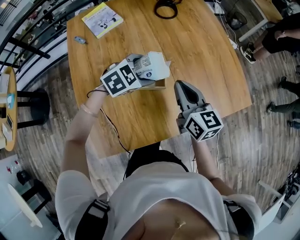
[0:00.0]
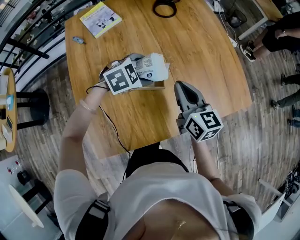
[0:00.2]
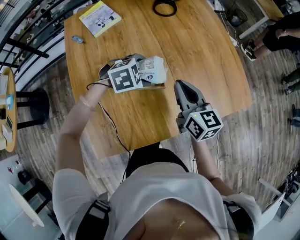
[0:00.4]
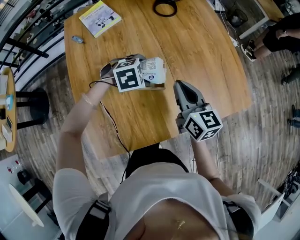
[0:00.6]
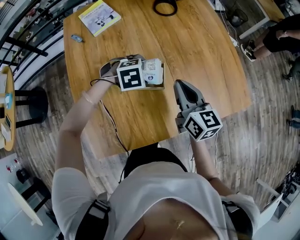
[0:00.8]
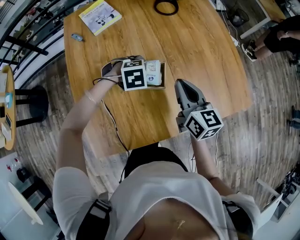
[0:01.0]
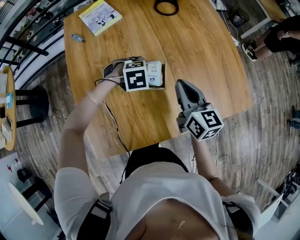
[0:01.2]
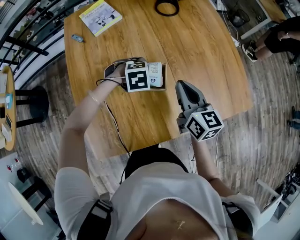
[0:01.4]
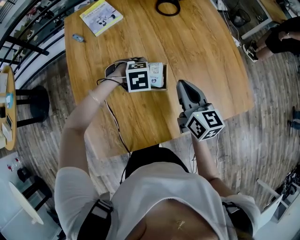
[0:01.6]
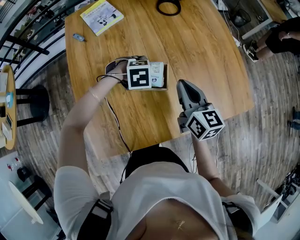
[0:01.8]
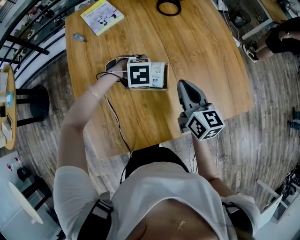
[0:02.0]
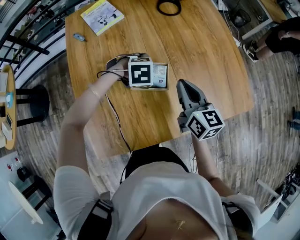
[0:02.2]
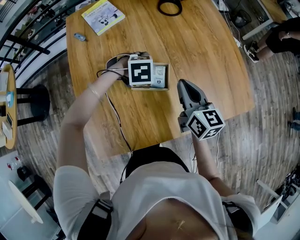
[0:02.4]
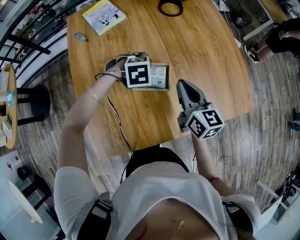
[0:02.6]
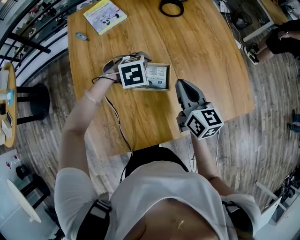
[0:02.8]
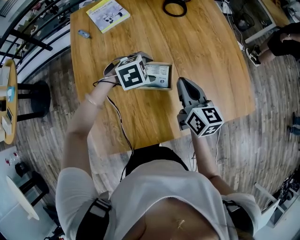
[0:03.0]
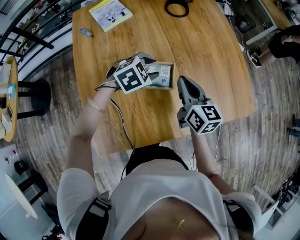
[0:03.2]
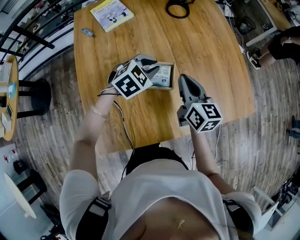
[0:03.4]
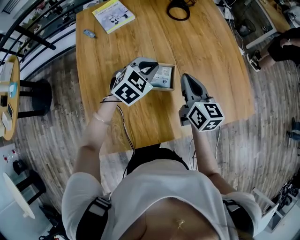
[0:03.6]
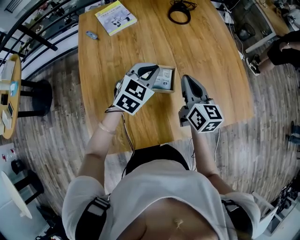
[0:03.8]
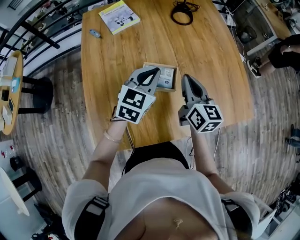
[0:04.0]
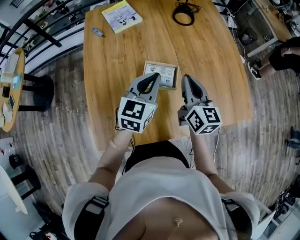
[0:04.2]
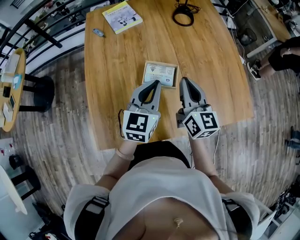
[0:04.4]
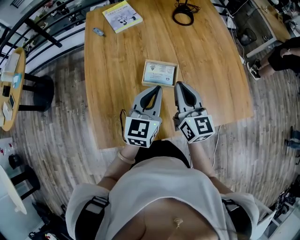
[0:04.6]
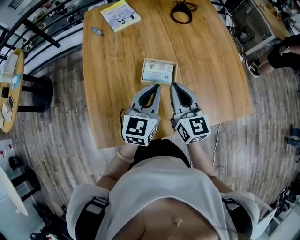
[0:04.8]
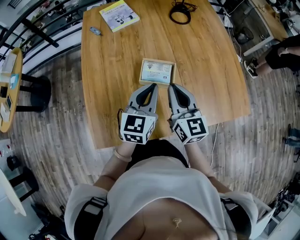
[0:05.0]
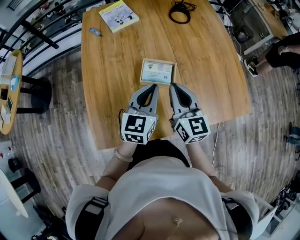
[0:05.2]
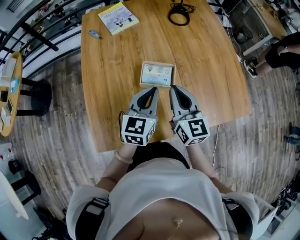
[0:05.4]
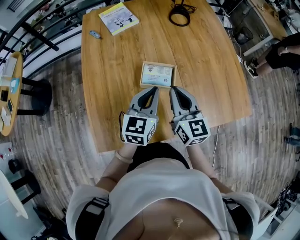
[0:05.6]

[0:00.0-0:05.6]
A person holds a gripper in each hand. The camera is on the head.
0:00.0 to 0:01.4: The left gripper heads downward, covering some 10 cm, and changes its angle by approximately 30 degrees.
0:01.4 to 0:02.8: The grippers stay close to where they were, moving slightly.
0:02.8 to 0:04.2: The left gripper moves upward, some 15 cm, angles its fingers upward, by approximately 50 degrees, and closes up.
0:04.2 to 0:05.6: The left gripper ends up approximately 5 cm from where it was; the right gripper goes roughly 5 cm backward.

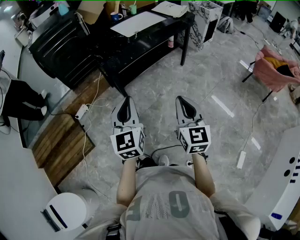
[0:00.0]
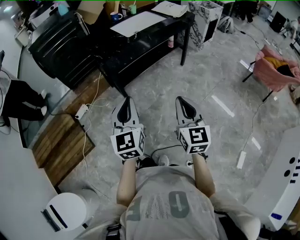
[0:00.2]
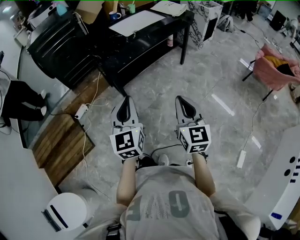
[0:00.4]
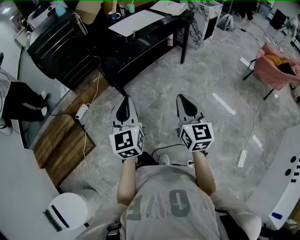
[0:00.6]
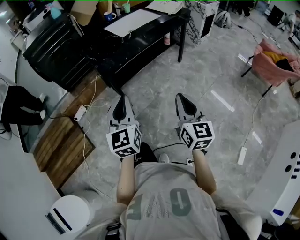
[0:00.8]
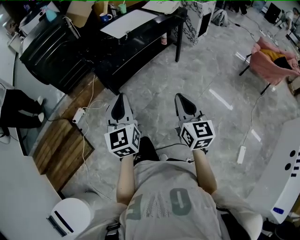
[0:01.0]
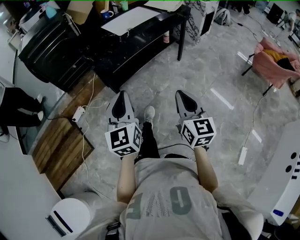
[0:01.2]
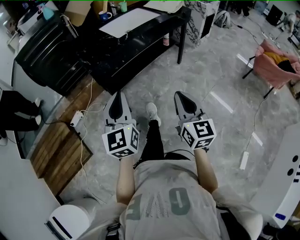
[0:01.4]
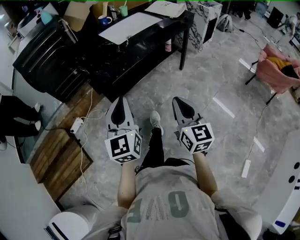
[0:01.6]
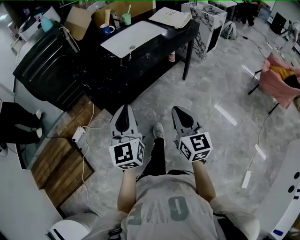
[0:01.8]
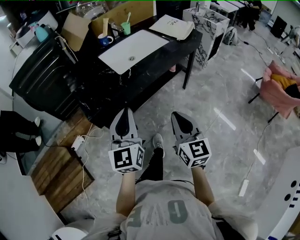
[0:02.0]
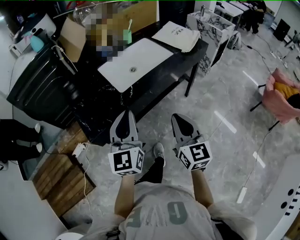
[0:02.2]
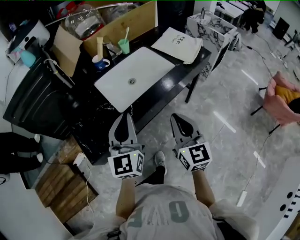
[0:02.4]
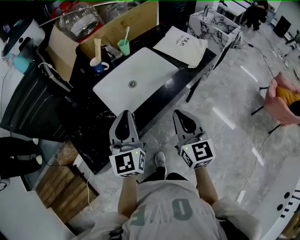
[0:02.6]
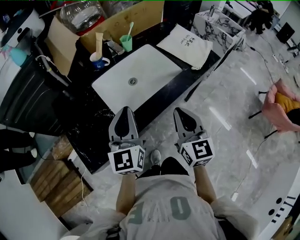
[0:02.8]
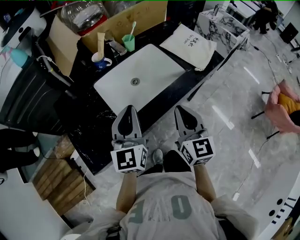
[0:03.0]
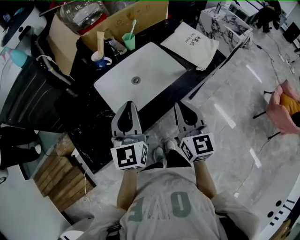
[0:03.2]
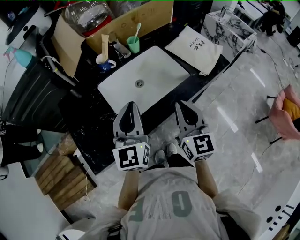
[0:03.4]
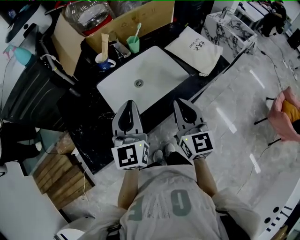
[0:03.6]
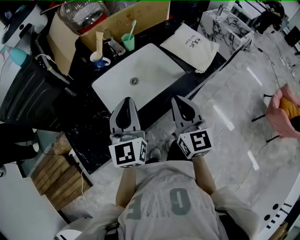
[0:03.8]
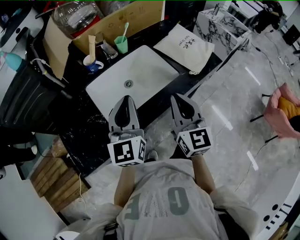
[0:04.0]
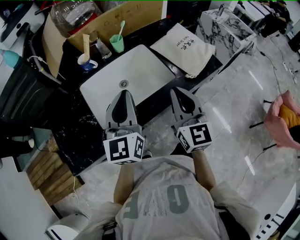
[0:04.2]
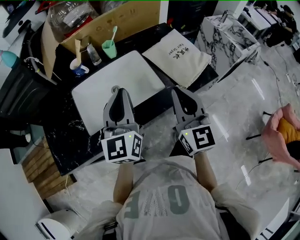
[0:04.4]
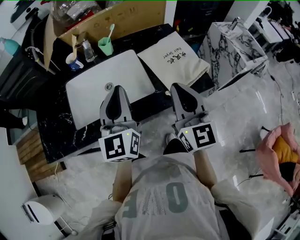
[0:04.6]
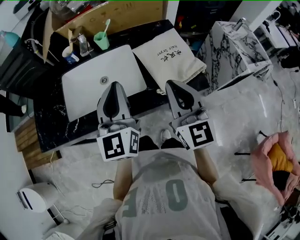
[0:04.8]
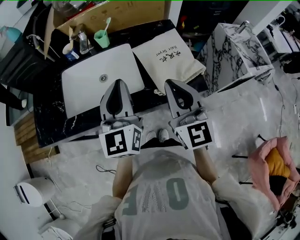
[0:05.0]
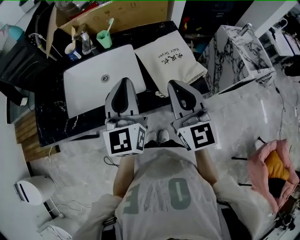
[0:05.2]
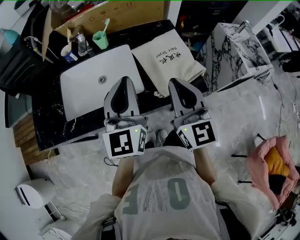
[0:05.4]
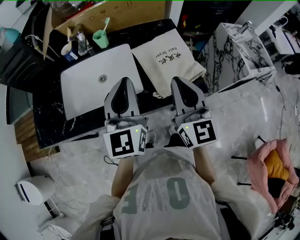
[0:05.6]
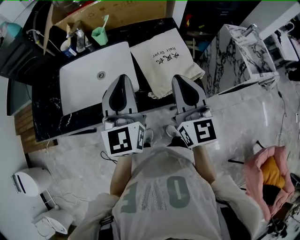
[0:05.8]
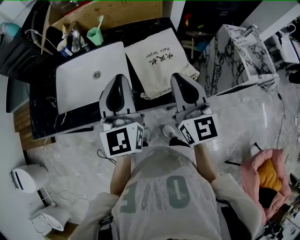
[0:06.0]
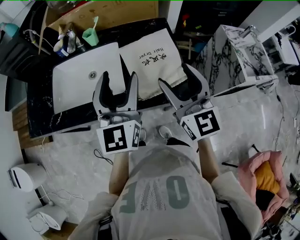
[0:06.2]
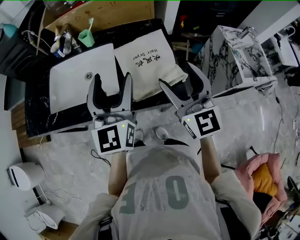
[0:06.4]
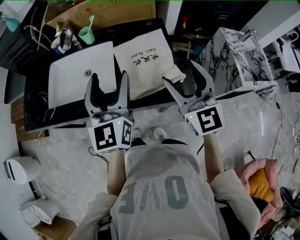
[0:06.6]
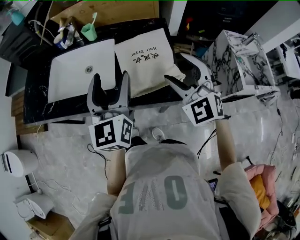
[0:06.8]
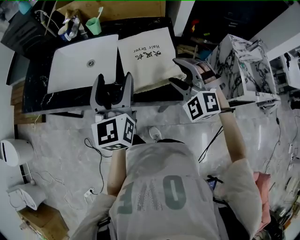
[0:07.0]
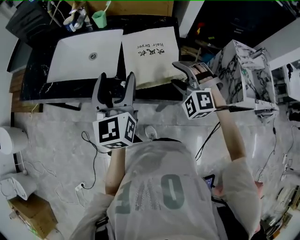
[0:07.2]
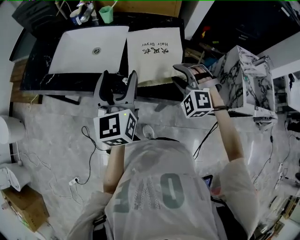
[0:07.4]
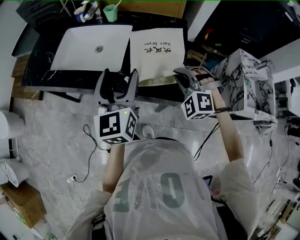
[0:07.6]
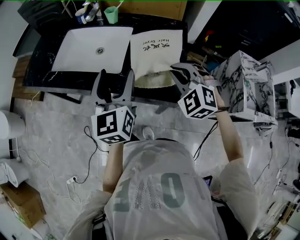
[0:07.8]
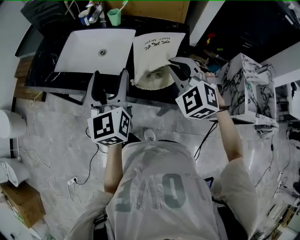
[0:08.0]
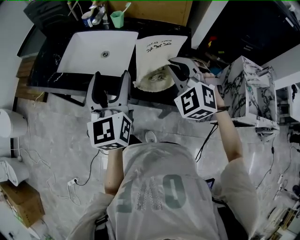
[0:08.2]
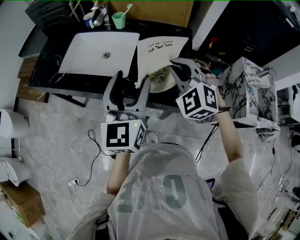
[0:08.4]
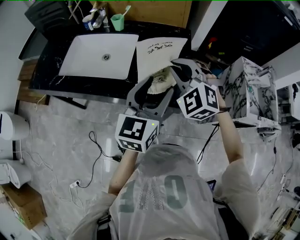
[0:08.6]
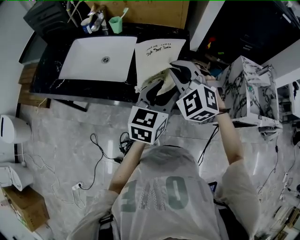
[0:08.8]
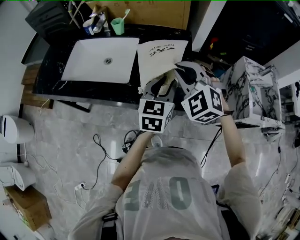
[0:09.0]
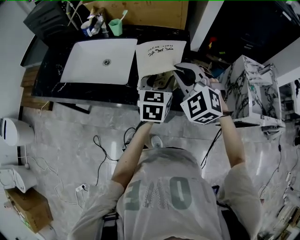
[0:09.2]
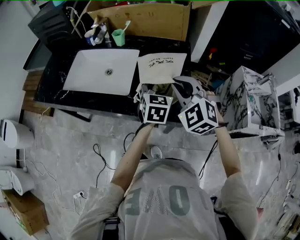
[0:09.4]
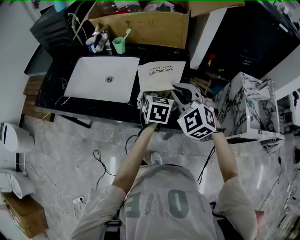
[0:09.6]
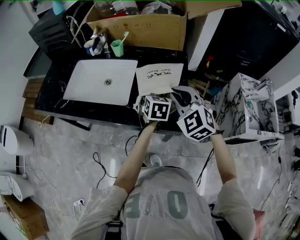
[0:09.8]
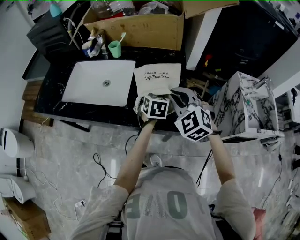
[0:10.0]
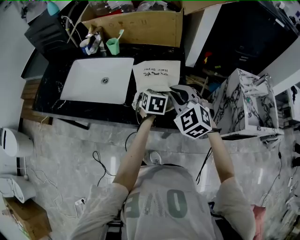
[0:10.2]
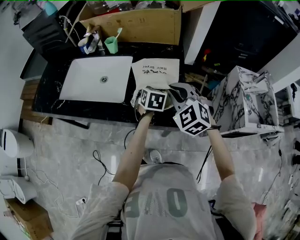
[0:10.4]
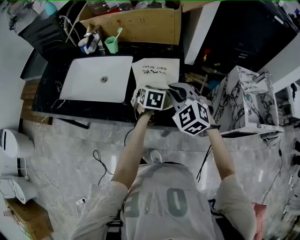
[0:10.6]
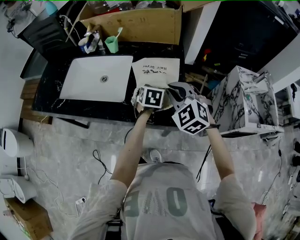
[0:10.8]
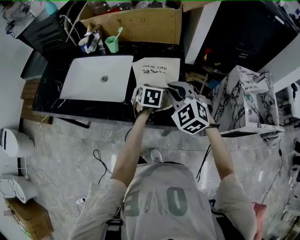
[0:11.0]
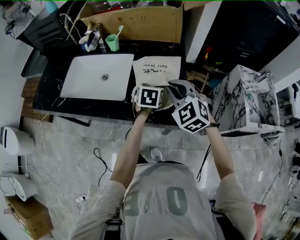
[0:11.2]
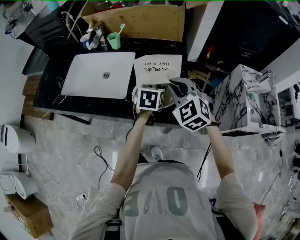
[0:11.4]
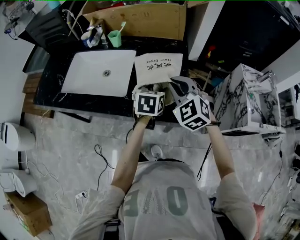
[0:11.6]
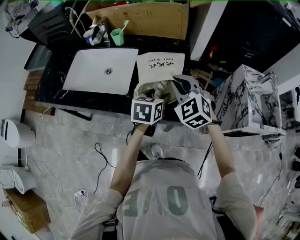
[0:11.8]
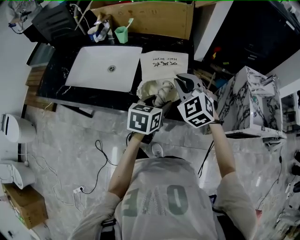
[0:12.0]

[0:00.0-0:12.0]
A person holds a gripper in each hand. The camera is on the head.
0:00.0 to 0:01.6: The right gripper travels forward and downward by roughly 15 cm. Meanwhile the left gripper goes approximately 15 cm forward.
0:01.6 to 0:03.0: Both grippers are carried forward, some 50 cm.
0:03.0 to 0:04.4: The two grippers go roughly 20 cm to the right and forward.
0:04.4 to 0:06.0: The grippers both shift to the right by approximately 20 cm. The right gripper turns by approximately 20 degrees, while the left gripper swivels some 20 degrees.
0:06.0 to 0:07.6: The right gripper is displaced downward and to the right by roughly 15 cm, rolls counterclockwise, seen from behind, by some 70 degrees, and opens and closes again, while the left gripper travels downward and backward by some 10 cm, and opens up.
0:07.6 to 0:09.0: The right gripper moves upward, about 10 cm, and rotates approximately 20 degrees; the left gripper shifts approximately 15 cm to the right and downward, changes its angle by about 30 degrees, and closes.
0:09.0 to 0:10.4: The left gripper goes roughly 15 cm downward and forward, changes its angle by some 30 degrees, and opens up.
0:10.4 to 0:12.0: The left gripper moves backward and upward, roughly 15 cm, and swivels some 20 degrees.

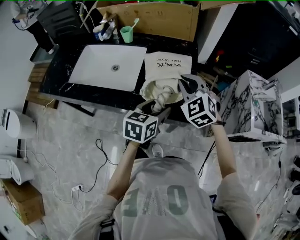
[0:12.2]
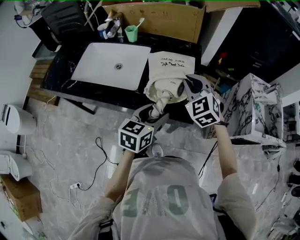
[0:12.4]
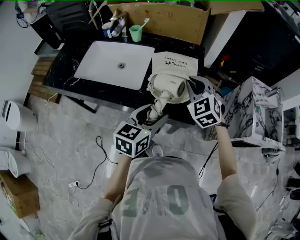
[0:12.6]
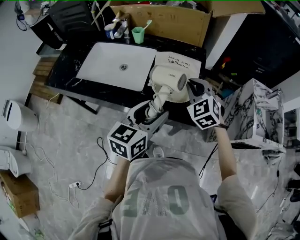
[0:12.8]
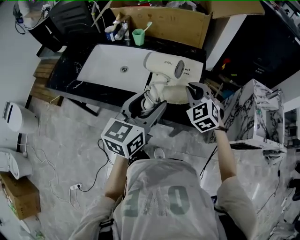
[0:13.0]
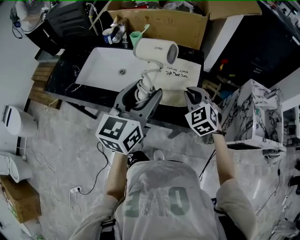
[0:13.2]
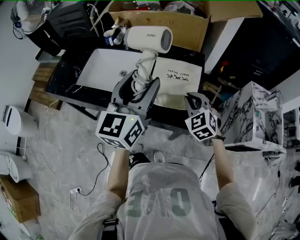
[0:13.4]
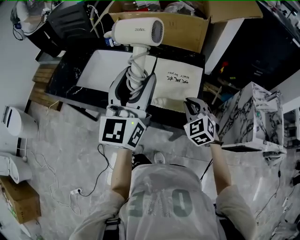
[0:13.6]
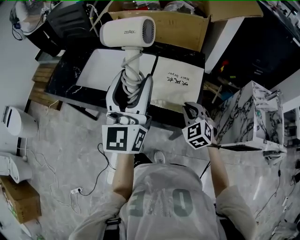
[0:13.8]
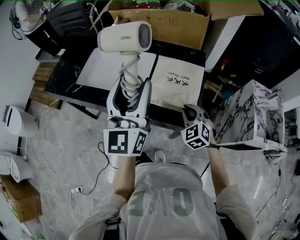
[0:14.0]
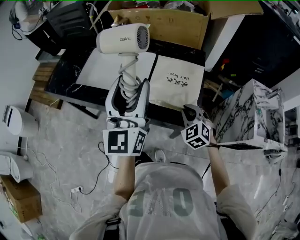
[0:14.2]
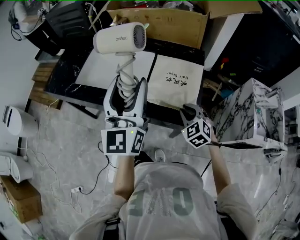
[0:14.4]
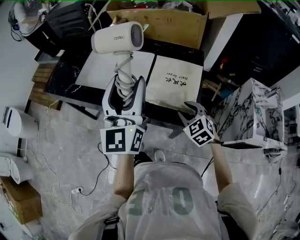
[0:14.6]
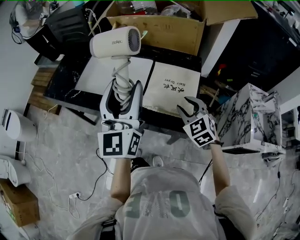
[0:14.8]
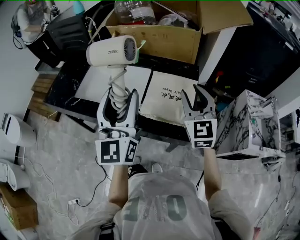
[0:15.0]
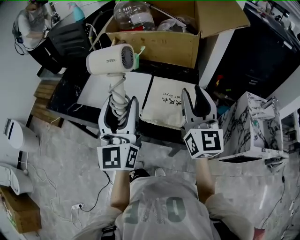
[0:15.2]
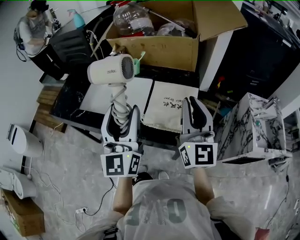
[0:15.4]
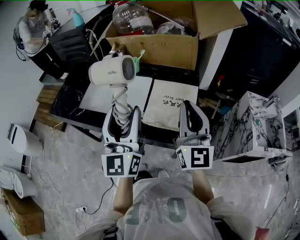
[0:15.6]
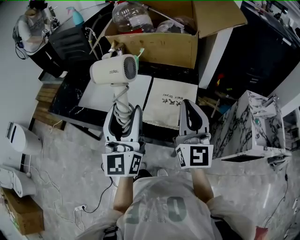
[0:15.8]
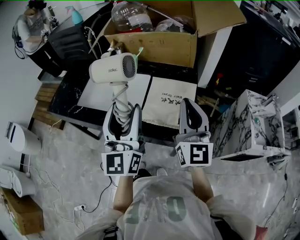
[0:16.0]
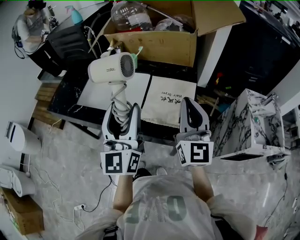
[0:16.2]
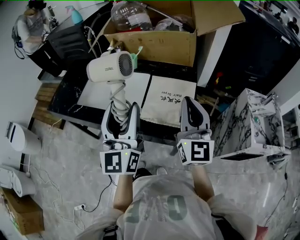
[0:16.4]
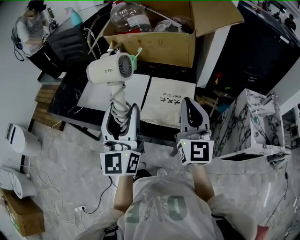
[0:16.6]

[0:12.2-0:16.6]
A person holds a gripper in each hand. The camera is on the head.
0:12.2 to 0:13.6: The left gripper moves upward and to the left, roughly 25 cm, and tilts its fingers roughly 40 degrees upward. The right gripper heads downward, covering about 5 cm.
0:13.6 to 0:15.2: The right gripper moves upward, about 20 cm, and points its fingers approximately 40 degrees further upward.
0:15.2 to 0:16.6: The right gripper closes its fingers.

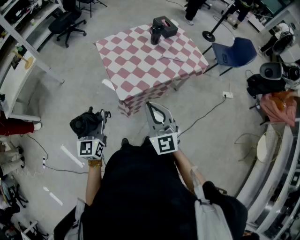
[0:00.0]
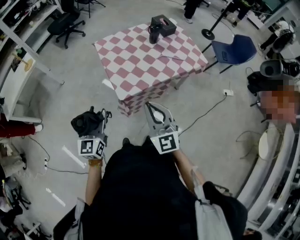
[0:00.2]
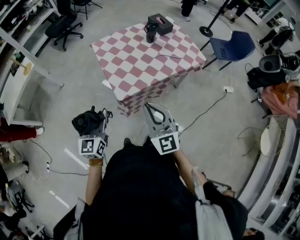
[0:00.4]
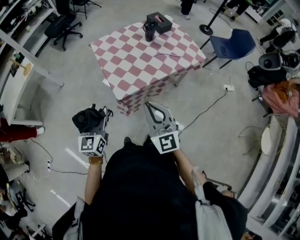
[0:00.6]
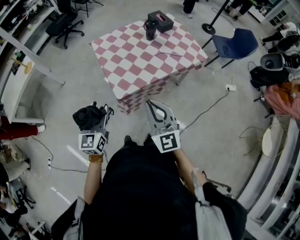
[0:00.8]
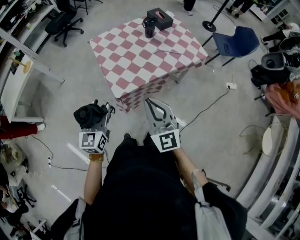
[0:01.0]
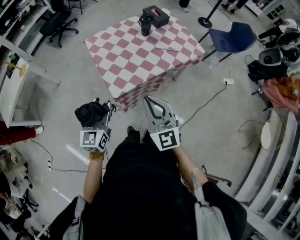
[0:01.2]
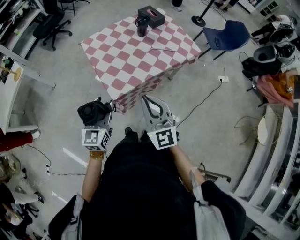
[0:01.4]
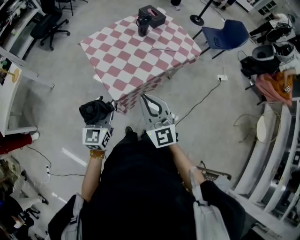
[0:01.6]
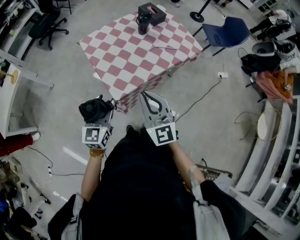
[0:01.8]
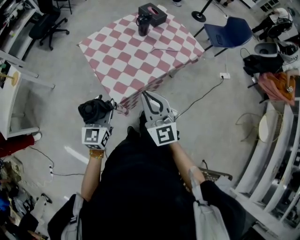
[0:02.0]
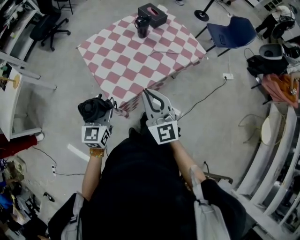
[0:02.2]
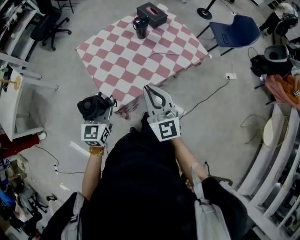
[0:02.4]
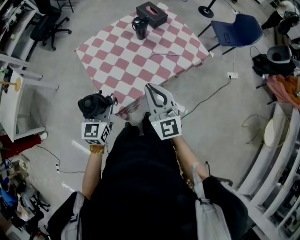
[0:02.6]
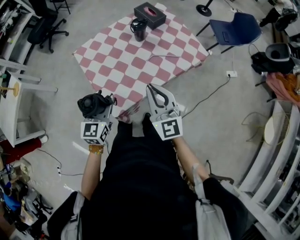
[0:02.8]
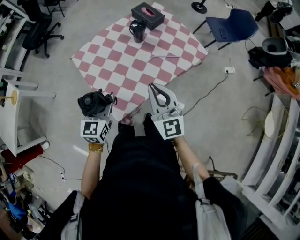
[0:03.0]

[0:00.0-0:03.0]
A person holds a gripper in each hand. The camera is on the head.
0:00.0 to 0:01.6: The left gripper moves forward and to the right, about 10 cm, while the right gripper travels forward by approximately 5 cm.
0:01.6 to 0:03.0: Both grippers travel together forward, some 20 cm.
